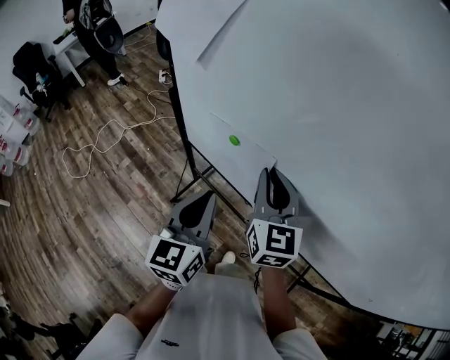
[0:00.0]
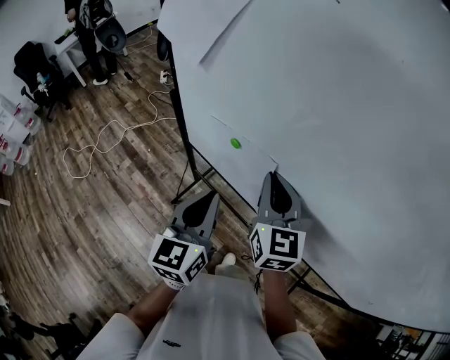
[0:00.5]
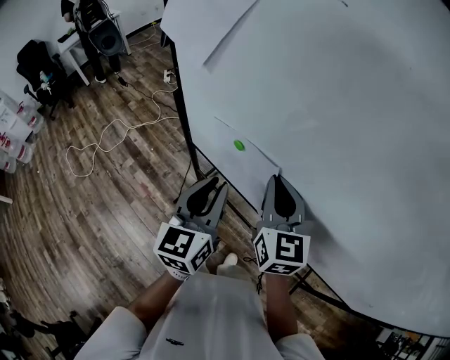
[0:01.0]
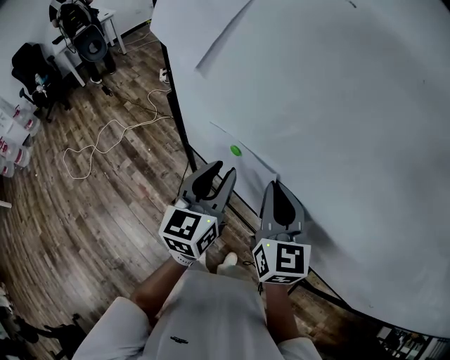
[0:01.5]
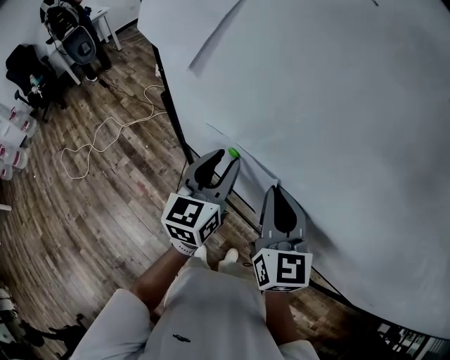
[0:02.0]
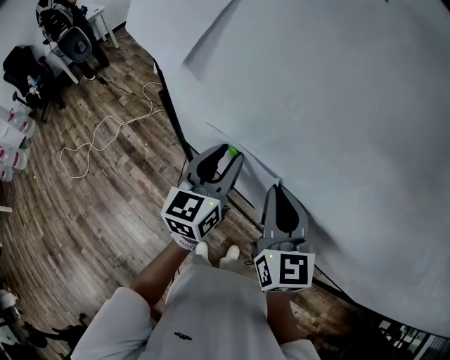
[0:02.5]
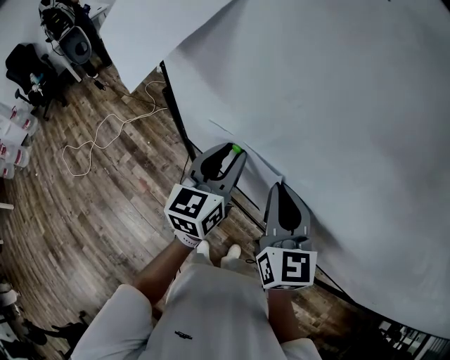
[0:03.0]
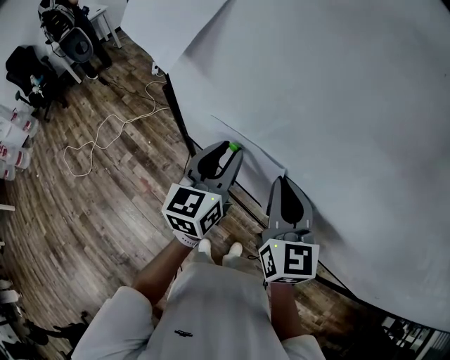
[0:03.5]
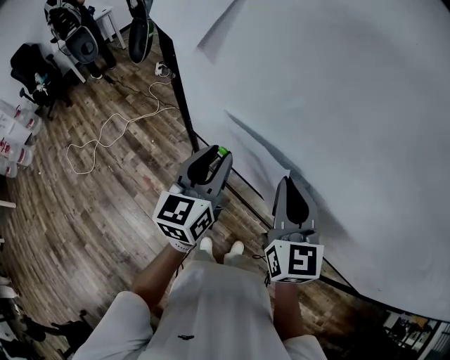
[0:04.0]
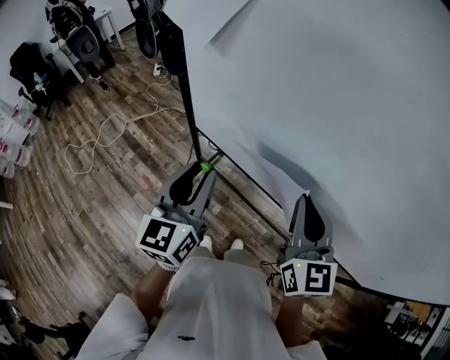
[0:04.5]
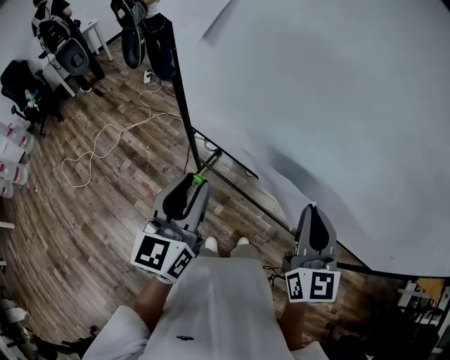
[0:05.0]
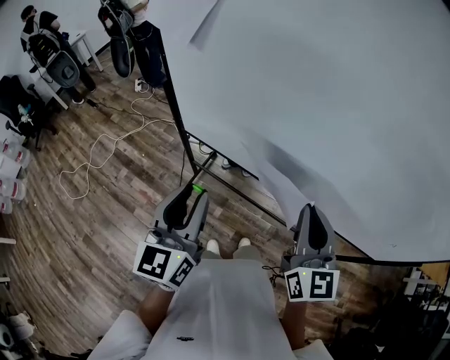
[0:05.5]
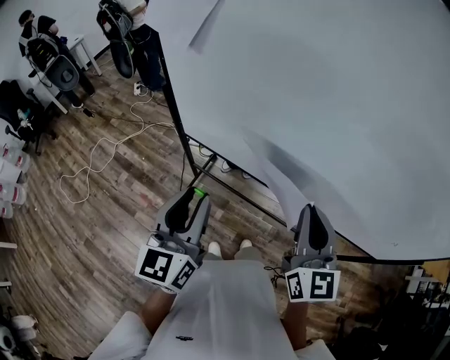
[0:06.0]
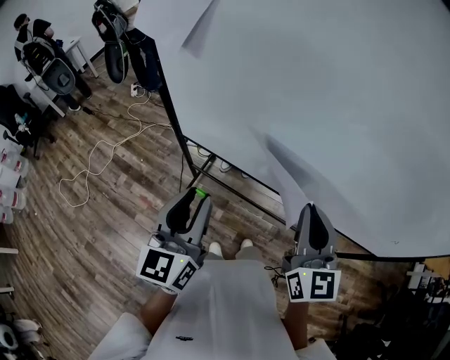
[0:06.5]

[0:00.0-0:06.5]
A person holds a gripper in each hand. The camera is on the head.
0:00.0 to 0:02.0: The left gripper is displaced forward by roughly 15 cm, and opens its fingers.
0:02.0 to 0:04.5: The right gripper is displaced backward by roughly 10 cm. Meanwhile the left gripper travels backward and to the left by approximately 15 cm.
0:04.5 to 0:06.5: Both grippers move backward, some 5 cm.

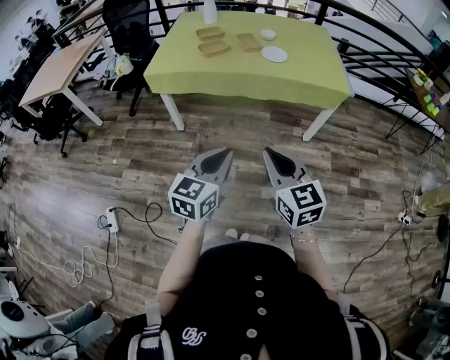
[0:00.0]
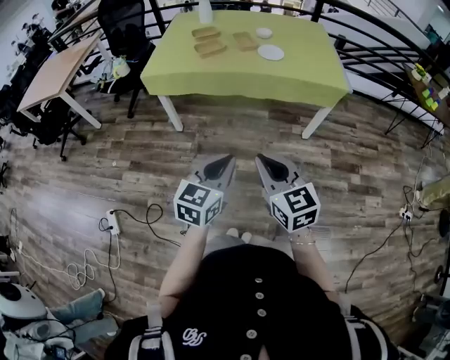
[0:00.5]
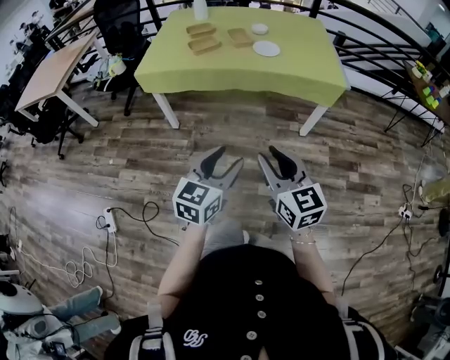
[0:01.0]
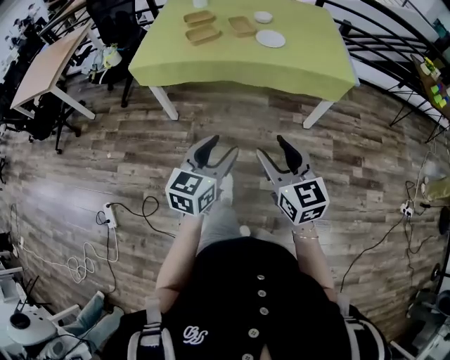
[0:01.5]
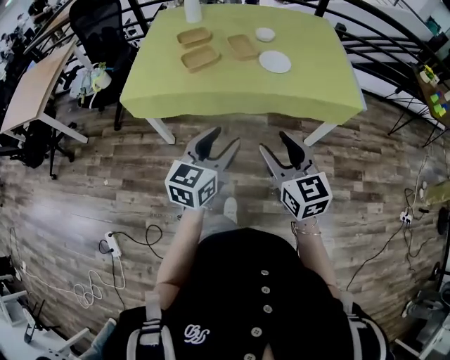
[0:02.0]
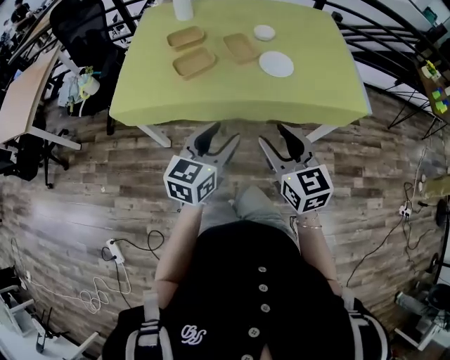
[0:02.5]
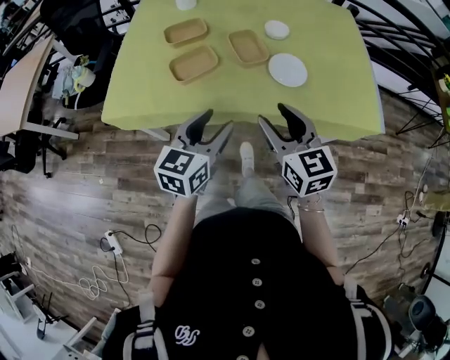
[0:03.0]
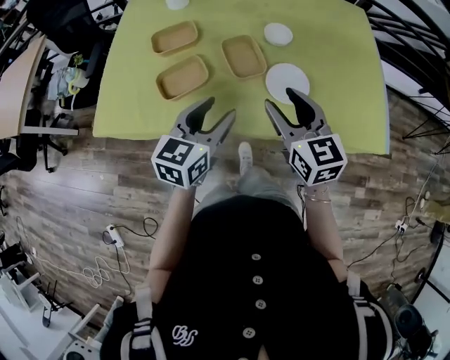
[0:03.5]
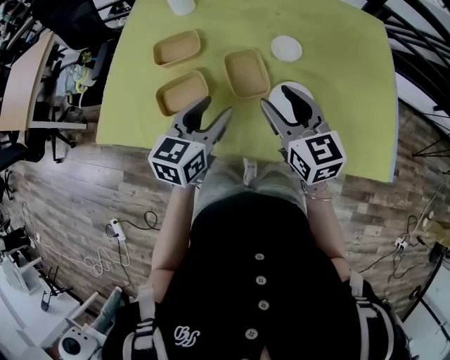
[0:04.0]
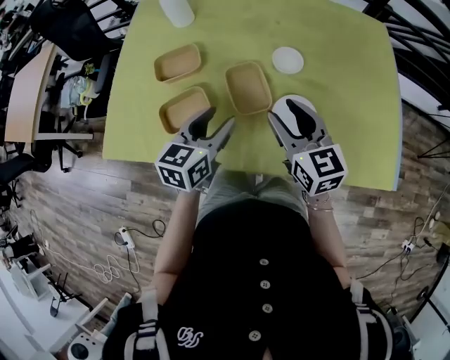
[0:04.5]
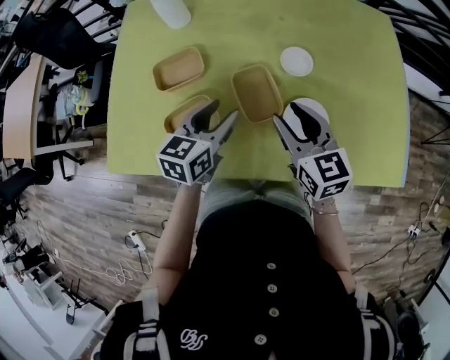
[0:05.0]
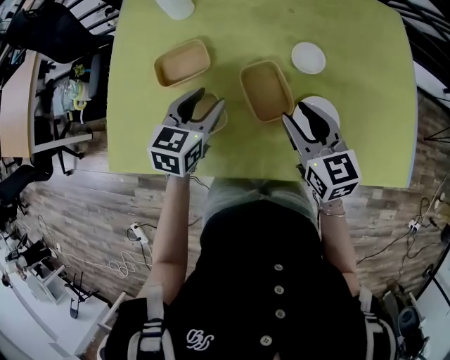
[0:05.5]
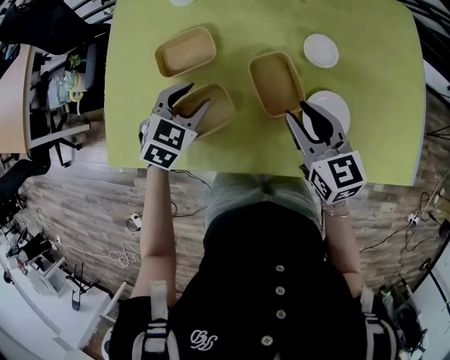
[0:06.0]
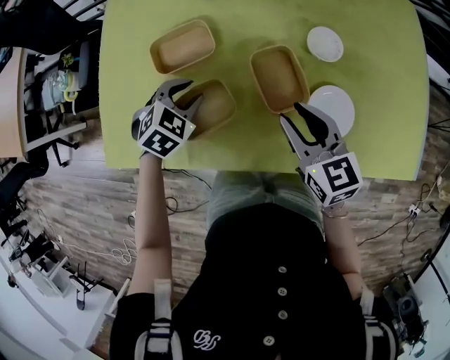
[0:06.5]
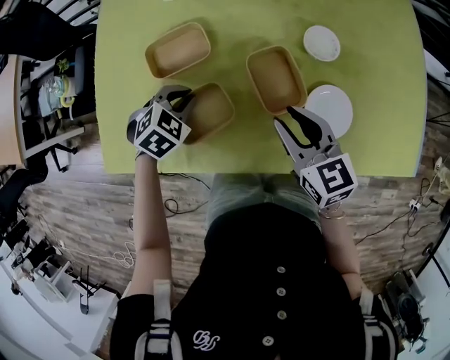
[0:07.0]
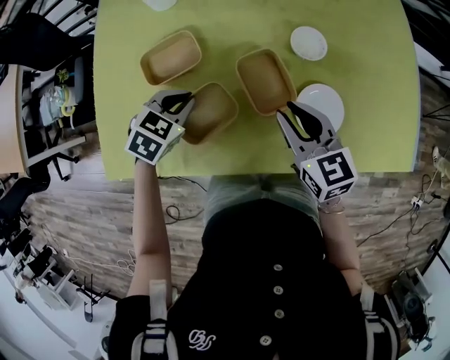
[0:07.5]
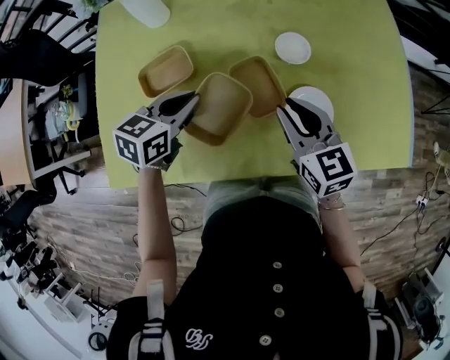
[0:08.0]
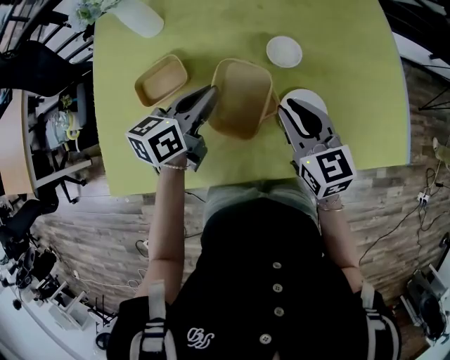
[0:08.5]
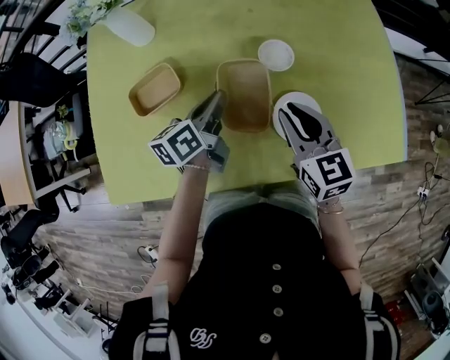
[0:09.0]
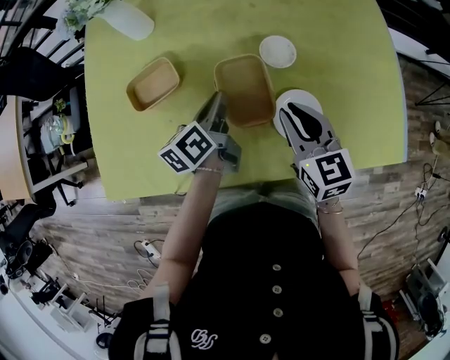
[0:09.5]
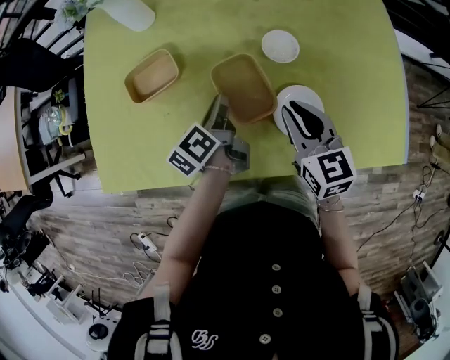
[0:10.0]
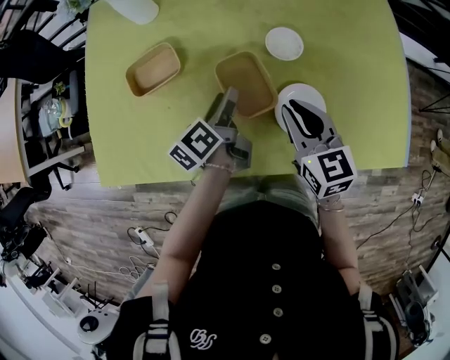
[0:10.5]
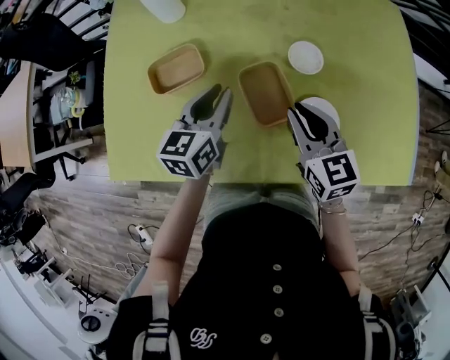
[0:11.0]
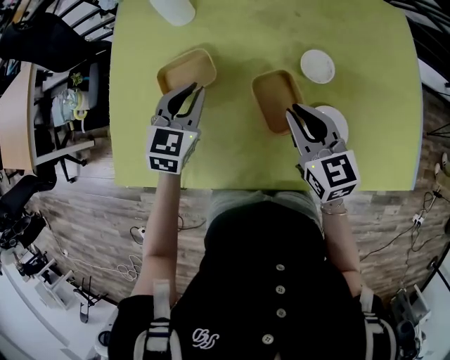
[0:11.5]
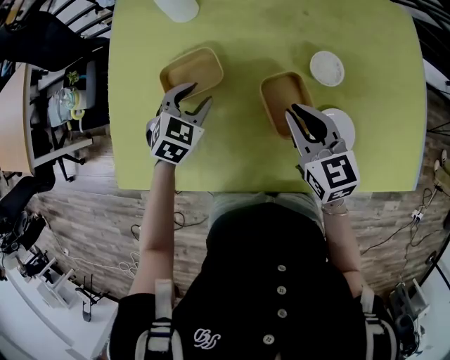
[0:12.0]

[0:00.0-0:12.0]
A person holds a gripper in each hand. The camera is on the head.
0:00.0 to 0:02.0: The grippers both shift forward by some 25 cm. The right gripper opens its fingers, while the left gripper opens up.
0:02.0 to 0:04.0: The pair of grippers is taken forward, about 40 cm.
0:04.0 to 0:06.0: The left gripper goes roughly 20 cm to the left, forward and downward, and rotates about 40 degrees, while the right gripper travels downward and forward by approximately 10 cm.
0:06.0 to 0:08.0: The left gripper travels to the right by about 5 cm, turns by about 30 degrees, and closes its fingers.
0:08.0 to 0:10.0: The left gripper goes some 10 cm to the right and downward, and rolls counterclockwise, seen from behind, by about 60 degrees.
0:10.0 to 0:12.0: The left gripper travels to the left by some 15 cm, twists some 90 degrees clockwise, seen from behind, and opens up. Meanwhile the right gripper heads to the left and forward, covering about 10 cm.

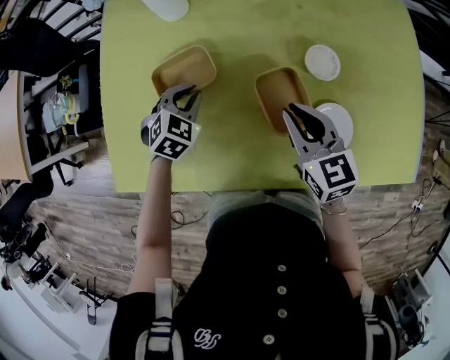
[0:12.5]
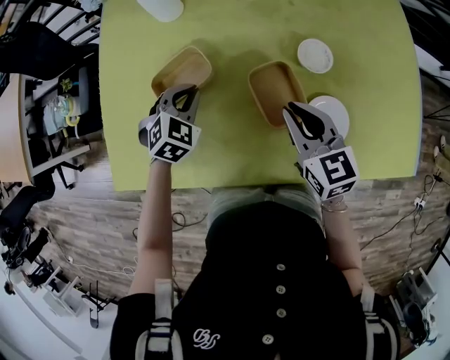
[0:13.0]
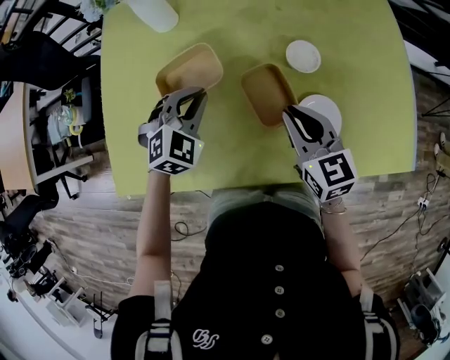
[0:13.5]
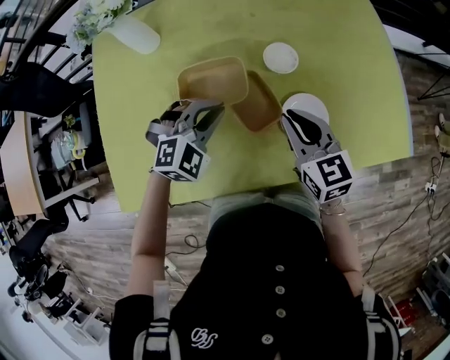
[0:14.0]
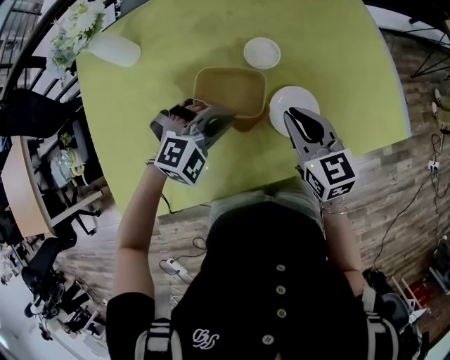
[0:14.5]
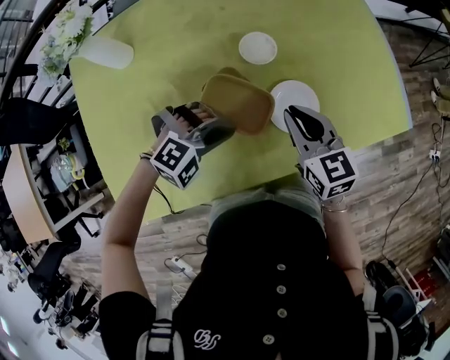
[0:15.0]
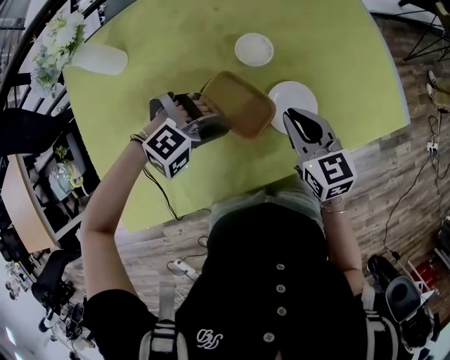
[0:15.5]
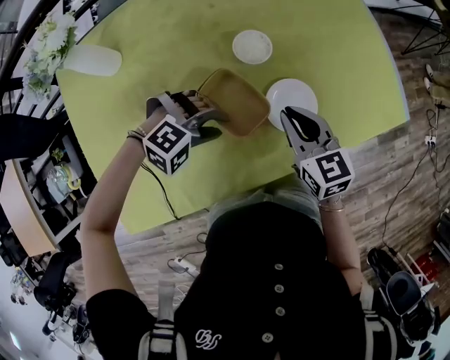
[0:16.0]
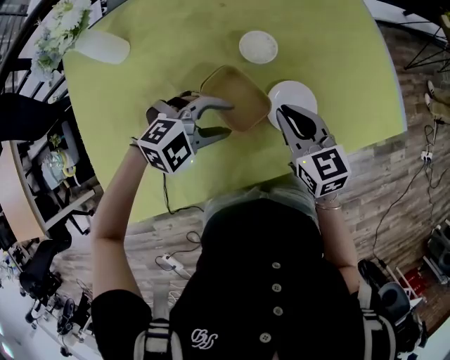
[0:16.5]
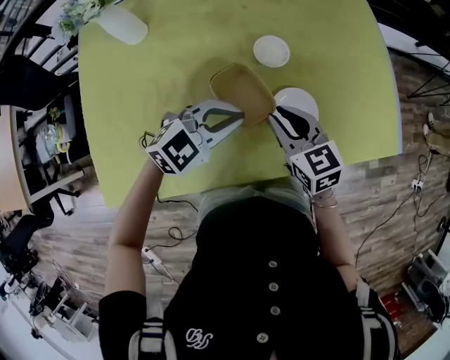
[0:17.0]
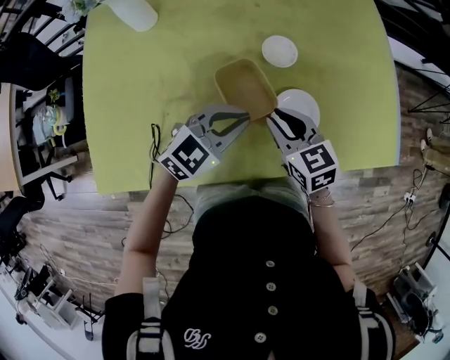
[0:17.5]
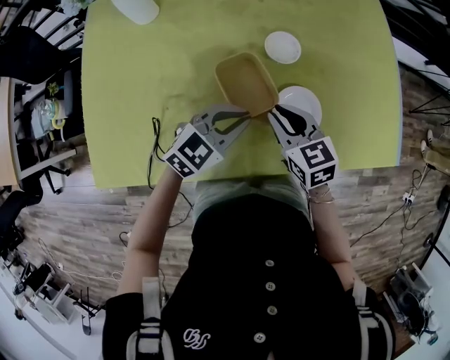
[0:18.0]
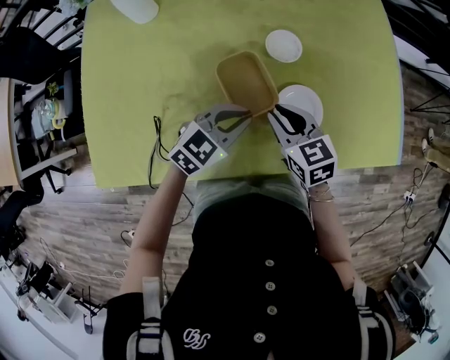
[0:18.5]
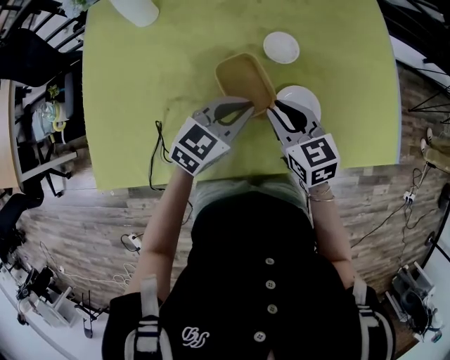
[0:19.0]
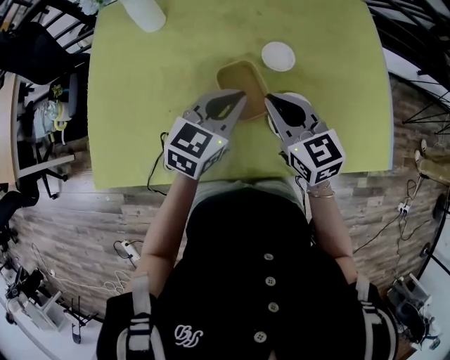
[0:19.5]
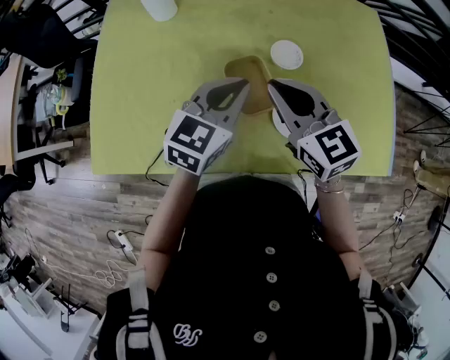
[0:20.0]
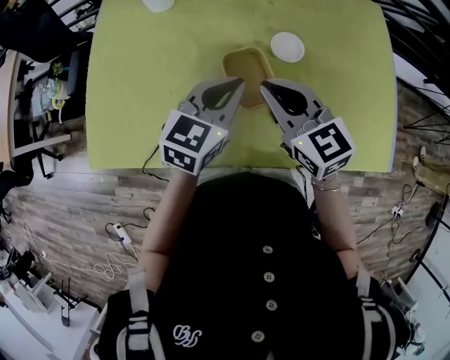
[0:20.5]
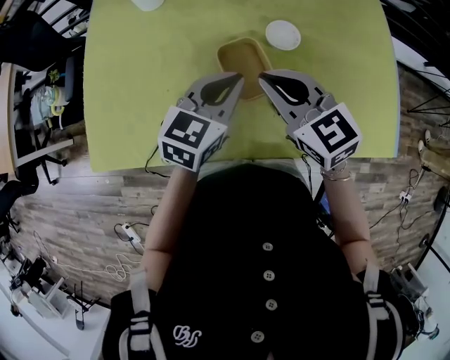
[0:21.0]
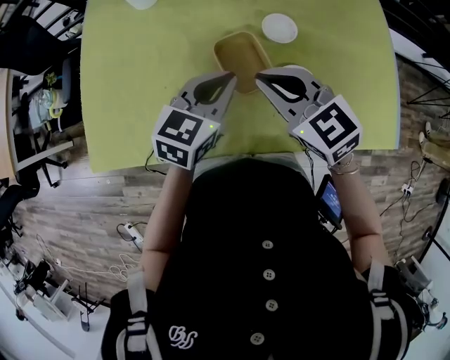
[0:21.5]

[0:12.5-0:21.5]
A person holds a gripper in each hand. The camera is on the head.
0:12.5 to 0:14.5: The right gripper shifts by some 15 cm, while the left gripper changes place by approximately 25 cm, and rolls clockwise, seen from behind, by about 50 degrees.
0:14.5 to 0:17.0: The left gripper changes its angle by about 40 degrees, and opens, then closes once more.
0:17.0 to 0:19.5: The left gripper turns by approximately 40 degrees, while the right gripper is displaced upward by approximately 5 cm.
0:19.5 to 0:21.5: The grippers move only a little.
